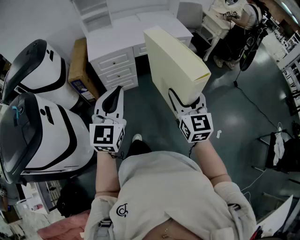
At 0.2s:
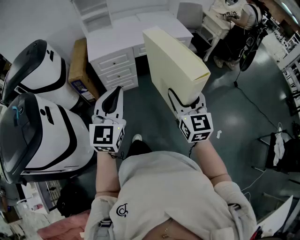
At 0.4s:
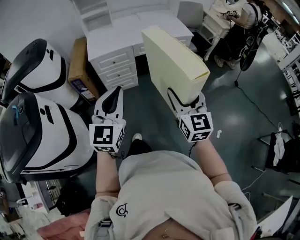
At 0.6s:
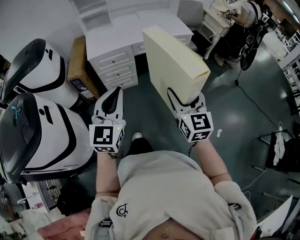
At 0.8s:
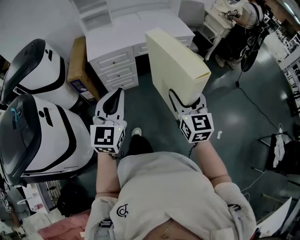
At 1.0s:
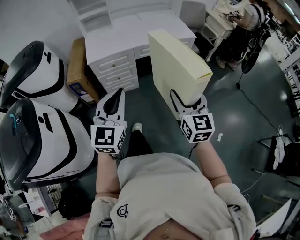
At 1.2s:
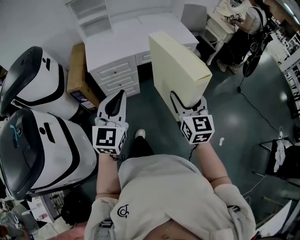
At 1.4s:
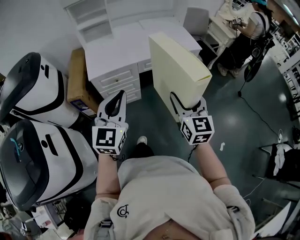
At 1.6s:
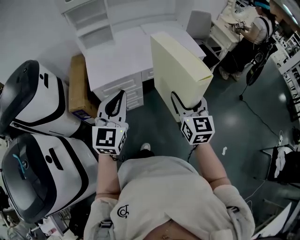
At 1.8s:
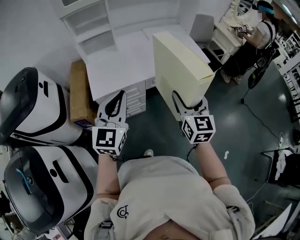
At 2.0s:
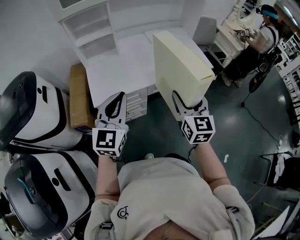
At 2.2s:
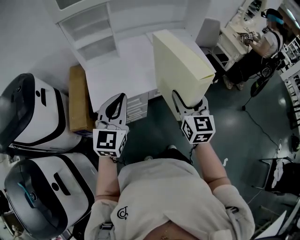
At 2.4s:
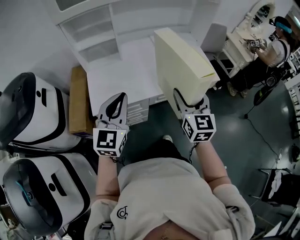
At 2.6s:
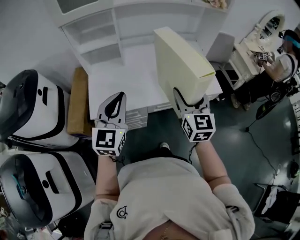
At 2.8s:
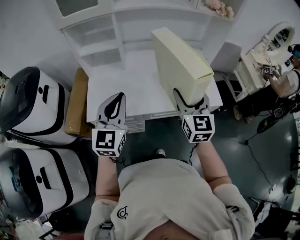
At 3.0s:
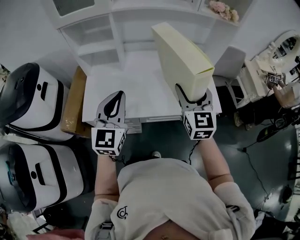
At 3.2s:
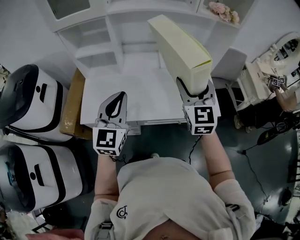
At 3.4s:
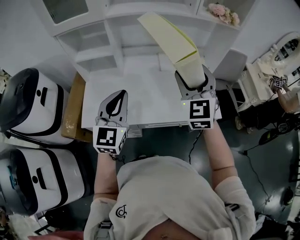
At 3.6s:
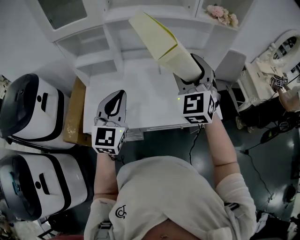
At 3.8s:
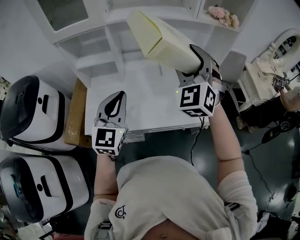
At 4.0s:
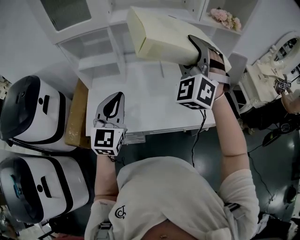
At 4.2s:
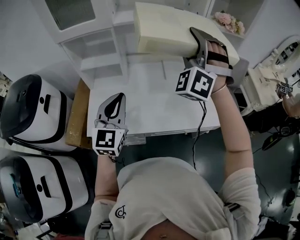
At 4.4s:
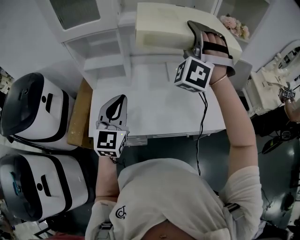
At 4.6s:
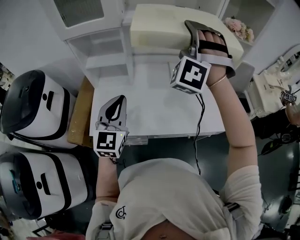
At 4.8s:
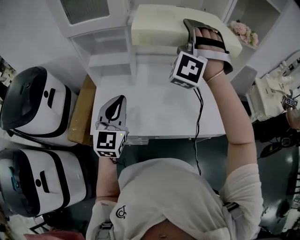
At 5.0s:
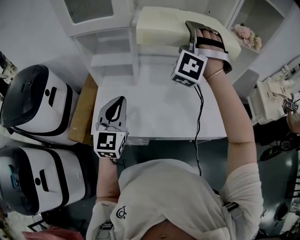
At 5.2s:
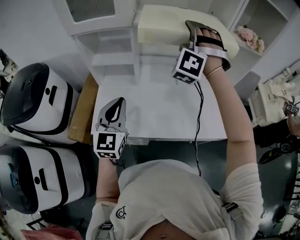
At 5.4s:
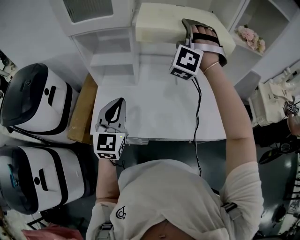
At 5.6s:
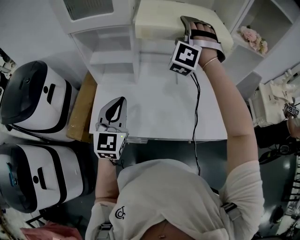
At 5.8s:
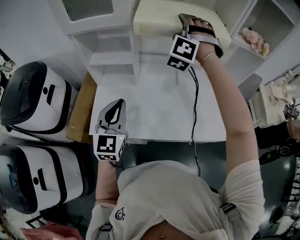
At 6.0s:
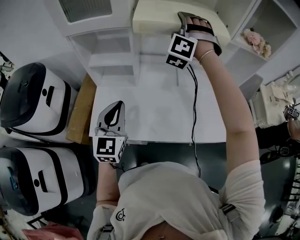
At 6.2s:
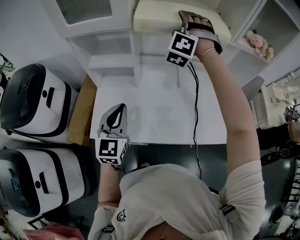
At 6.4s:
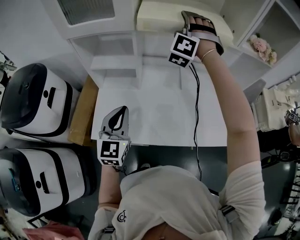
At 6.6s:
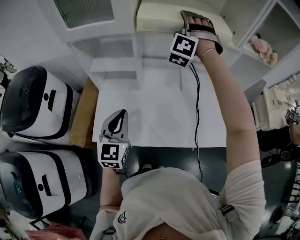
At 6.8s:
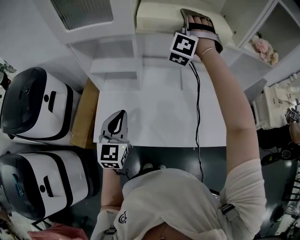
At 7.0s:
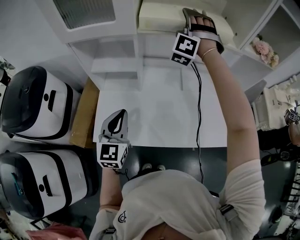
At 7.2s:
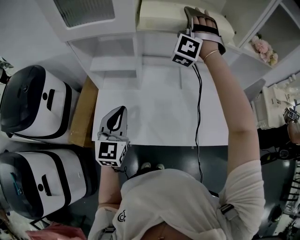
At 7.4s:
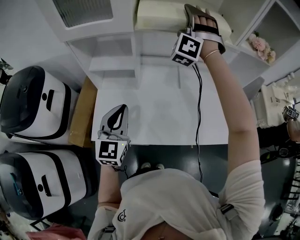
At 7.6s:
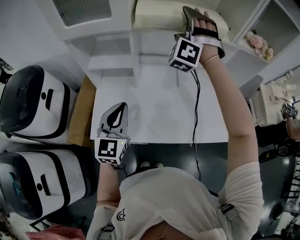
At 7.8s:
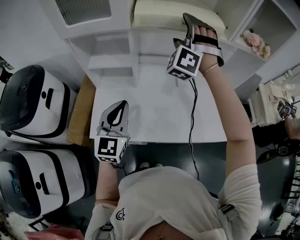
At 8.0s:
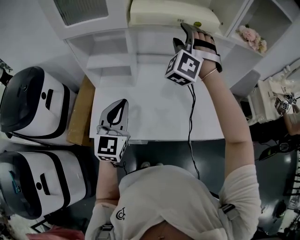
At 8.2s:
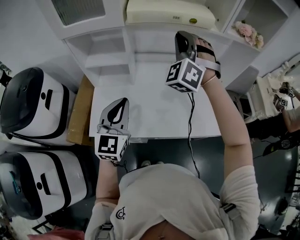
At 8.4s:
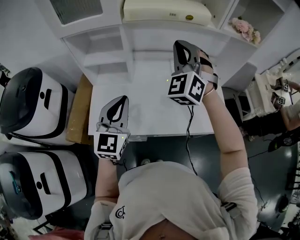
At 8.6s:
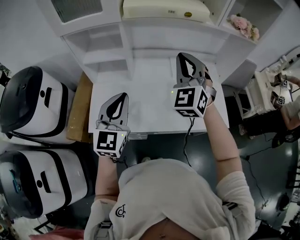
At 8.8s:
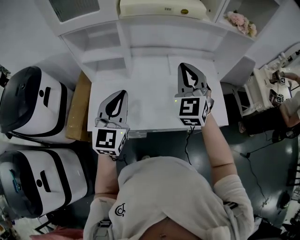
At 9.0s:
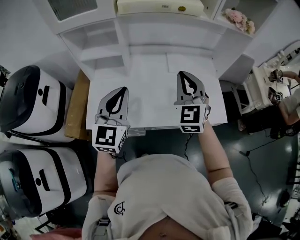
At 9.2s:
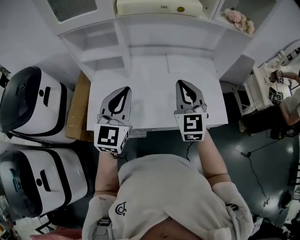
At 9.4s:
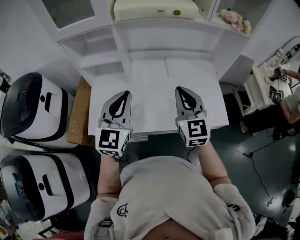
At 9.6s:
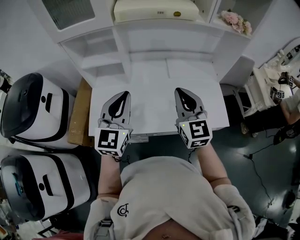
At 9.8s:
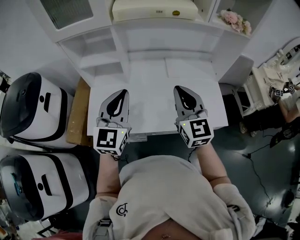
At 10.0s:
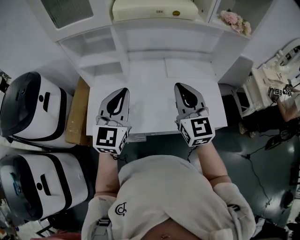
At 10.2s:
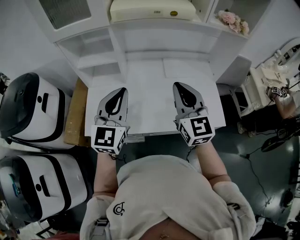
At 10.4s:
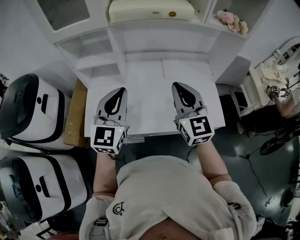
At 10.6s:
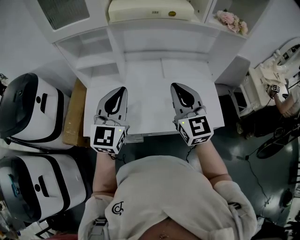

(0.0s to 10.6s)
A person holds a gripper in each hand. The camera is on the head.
0.0s - 1.6s: Both grippers travel together forward, approximately 25 cm.
1.6s - 3.0s: The grippers both shift forward by approximately 35 cm.
3.0s - 4.6s: The right gripper shifts about 25 cm forward, upward and to the left, and rolls counterclockwise, seen from behind, by approximately 80 degrees. The left gripper moves forward and to the left, approximately 10 cm.
4.6s - 6.0s: The left gripper changes place by approximately 5 cm. Meanwhile the right gripper moves forward and to the left, about 15 cm.
7.6s - 9.0s: The left gripper goes about 5 cm to the right; the right gripper is displaced backward, downward and to the right by roughly 30 cm, rolls clockwise, seen from behind, by approximately 60 degrees, and closes its fingers.
9.0s - 10.6s: The right gripper changes its angle by about 20 degrees.

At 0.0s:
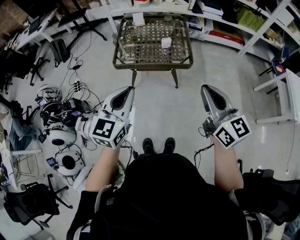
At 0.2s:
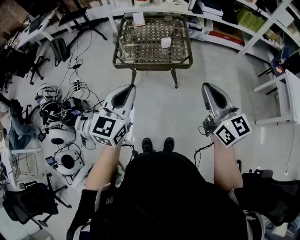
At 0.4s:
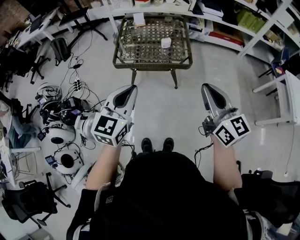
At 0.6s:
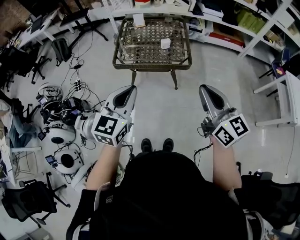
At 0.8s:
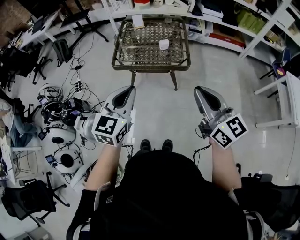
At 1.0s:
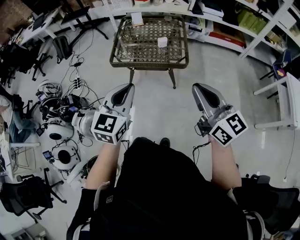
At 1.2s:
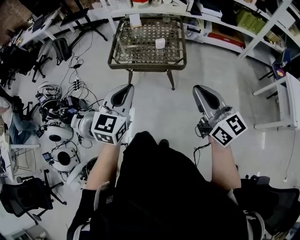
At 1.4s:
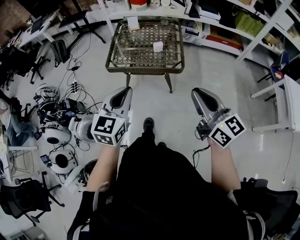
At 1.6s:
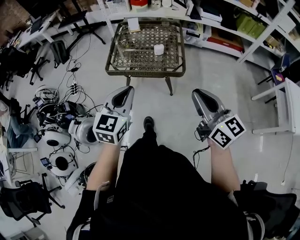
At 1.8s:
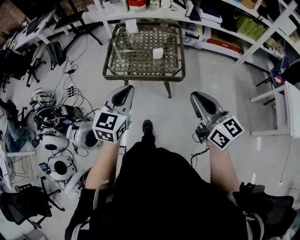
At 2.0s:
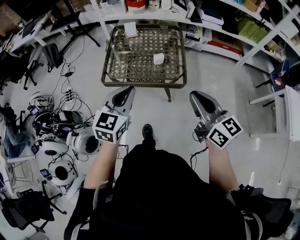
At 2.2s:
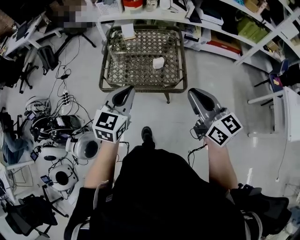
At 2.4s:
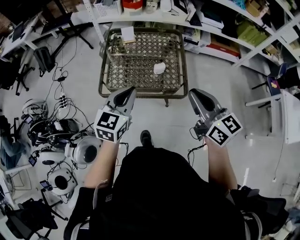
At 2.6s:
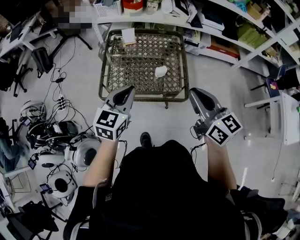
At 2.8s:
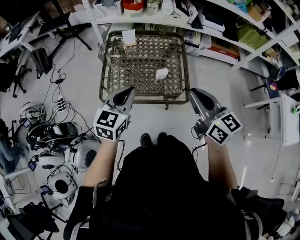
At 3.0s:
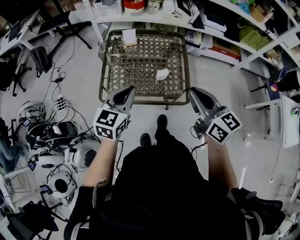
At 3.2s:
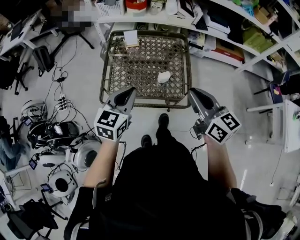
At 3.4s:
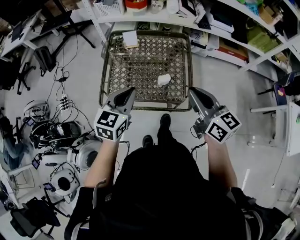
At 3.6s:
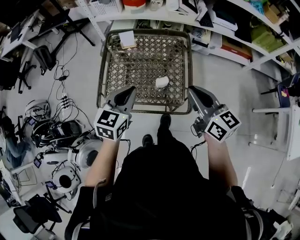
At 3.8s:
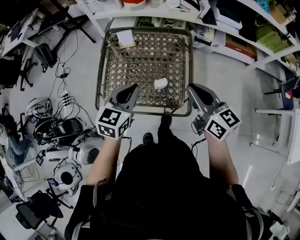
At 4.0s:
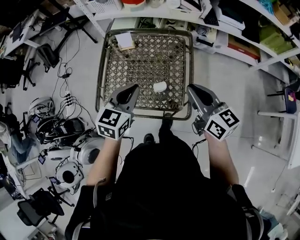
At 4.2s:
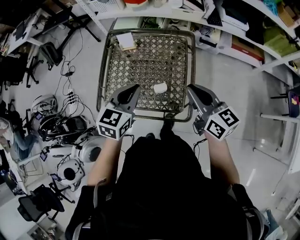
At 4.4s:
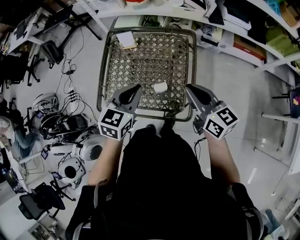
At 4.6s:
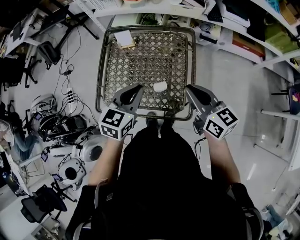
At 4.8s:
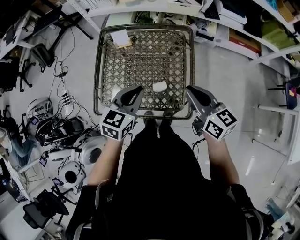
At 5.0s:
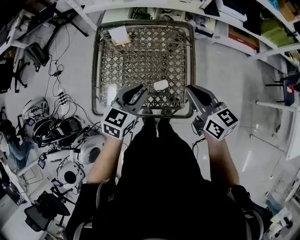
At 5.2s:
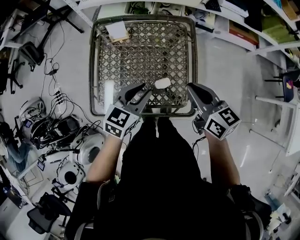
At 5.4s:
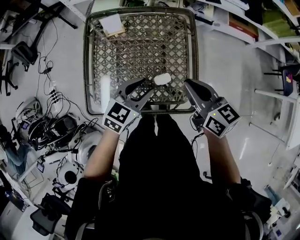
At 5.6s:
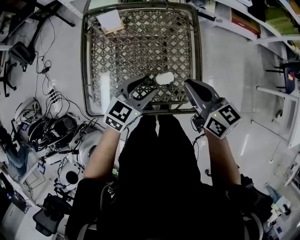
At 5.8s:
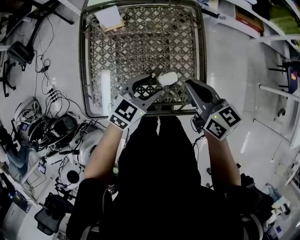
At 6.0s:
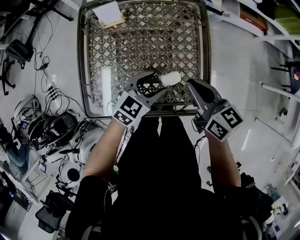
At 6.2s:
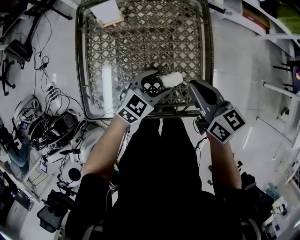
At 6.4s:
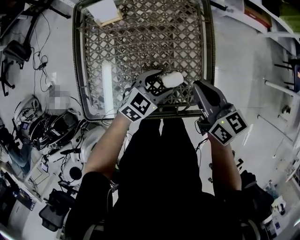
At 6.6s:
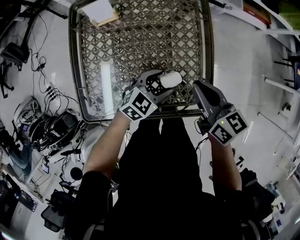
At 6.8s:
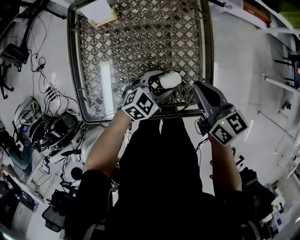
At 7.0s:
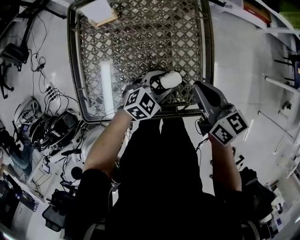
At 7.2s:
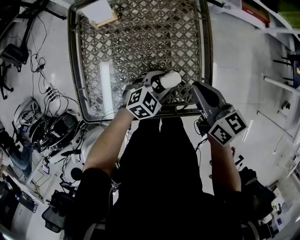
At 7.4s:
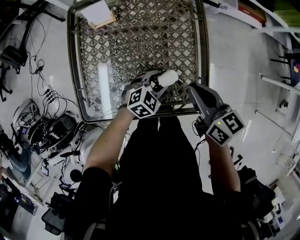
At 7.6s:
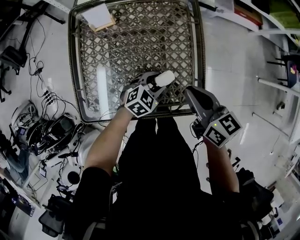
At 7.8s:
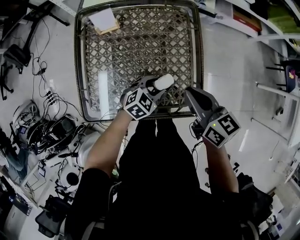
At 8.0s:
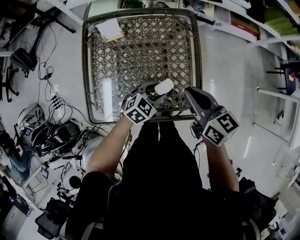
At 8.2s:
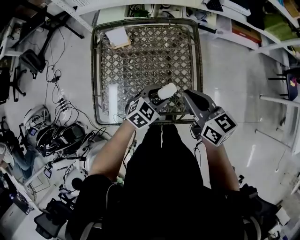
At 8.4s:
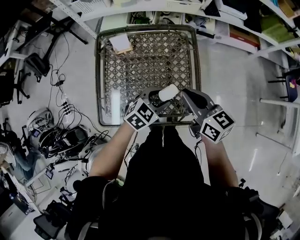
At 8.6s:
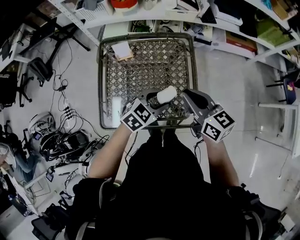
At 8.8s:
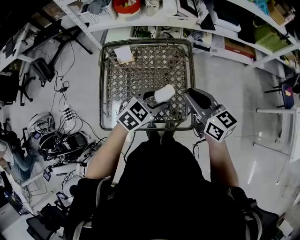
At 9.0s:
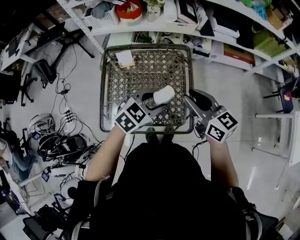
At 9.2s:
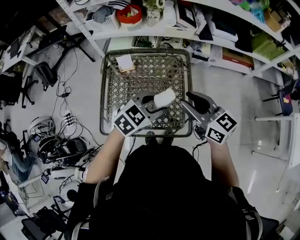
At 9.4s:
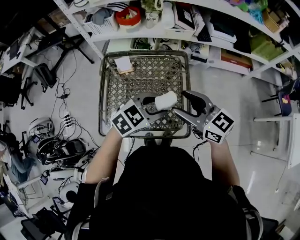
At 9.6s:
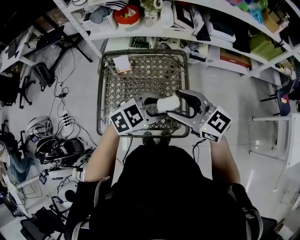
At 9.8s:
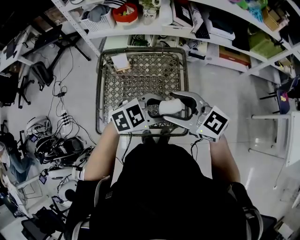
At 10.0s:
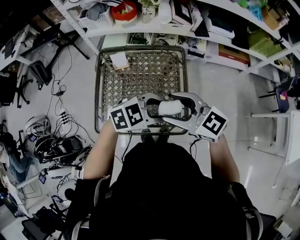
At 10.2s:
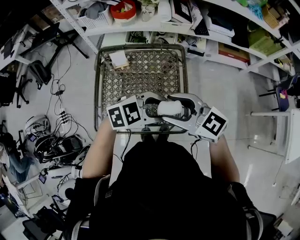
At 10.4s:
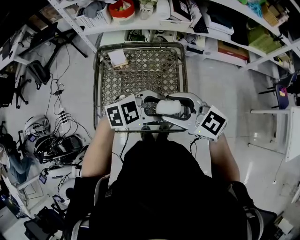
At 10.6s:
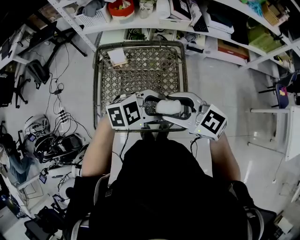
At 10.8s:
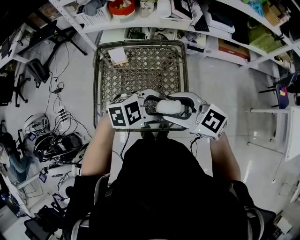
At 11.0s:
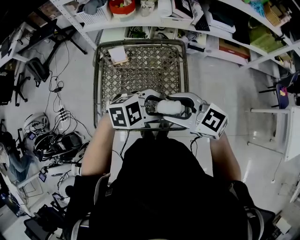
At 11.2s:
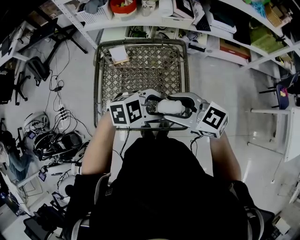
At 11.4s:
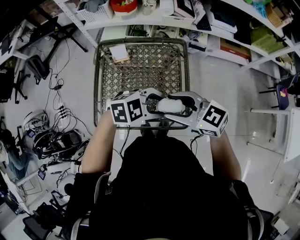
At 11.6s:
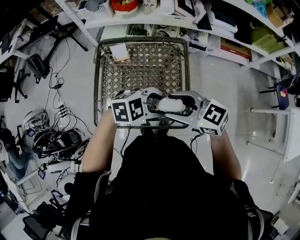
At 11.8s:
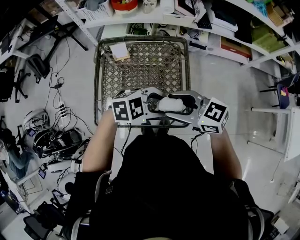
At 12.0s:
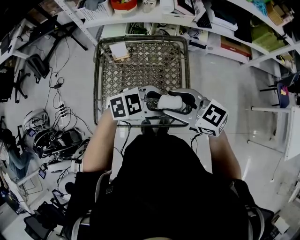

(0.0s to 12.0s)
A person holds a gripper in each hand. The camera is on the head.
0.0s - 1.6s: The left gripper goes about 5 cm to the right. Meanwhile the right gripper ends up some 5 cm from where it was.
1.6s - 3.0s: The grippers both shift forward by approximately 25 cm.
3.0s - 4.4s: The right gripper is displaced forward, downward and to the right by about 20 cm. Meanwhile the left gripper travels forward and to the right by some 15 cm.
4.4s - 6.0s: The right gripper travels downward and to the left by about 15 cm. The left gripper moves downward, roughly 20 cm, swivels approximately 30 degrees, and opens.
6.0s - 7.6s: The left gripper heads downward, covering roughly 10 cm.
7.6s - 9.0s: The left gripper shifts approximately 25 cm upward. The right gripper is displaced upward by some 15 cm, and changes its angle by approximately 20 degrees.
9.0s - 10.4s: The right gripper ends up roughly 10 cm from where it was, turns by some 30 degrees, and opens up; the left gripper shifts by approximately 5 cm, and changes its angle by approximately 30 degrees.
10.4s - 12.0s: The grippers make only small movements.

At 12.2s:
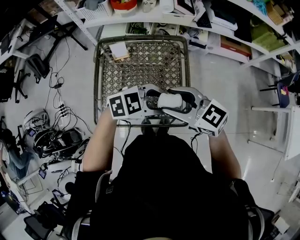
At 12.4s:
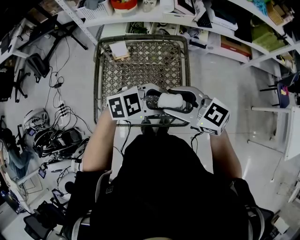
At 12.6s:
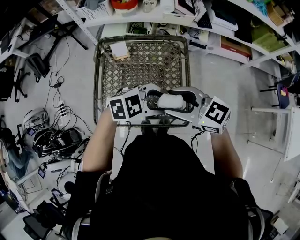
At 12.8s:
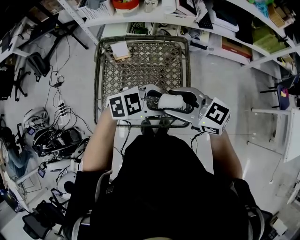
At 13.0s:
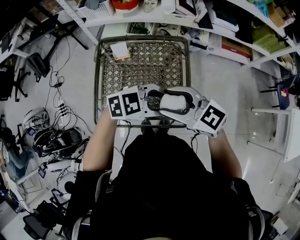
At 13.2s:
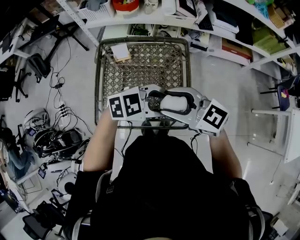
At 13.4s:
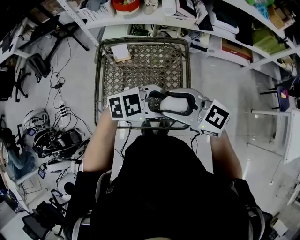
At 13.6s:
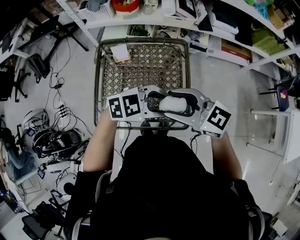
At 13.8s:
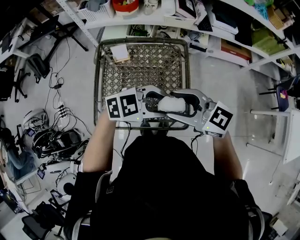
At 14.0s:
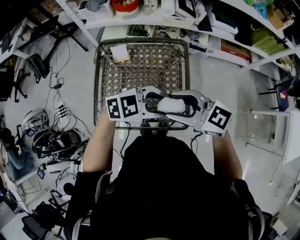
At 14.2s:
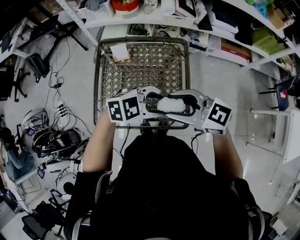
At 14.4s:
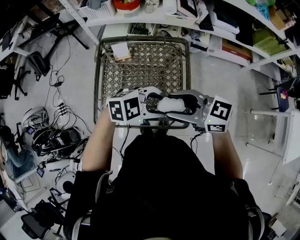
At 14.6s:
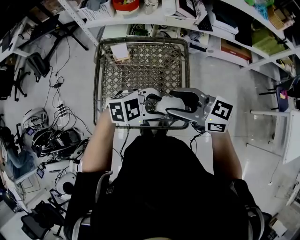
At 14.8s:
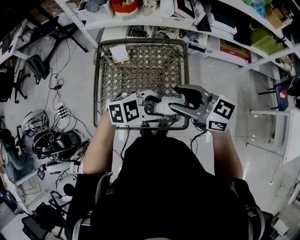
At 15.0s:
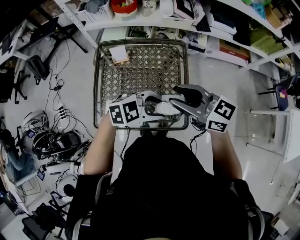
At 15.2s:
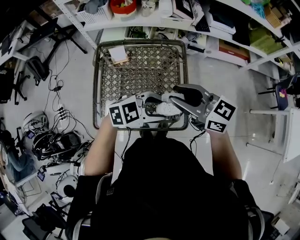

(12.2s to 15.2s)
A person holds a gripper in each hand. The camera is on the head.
12.2s - 13.8s: The grippers move only a little.
13.8s - 15.2s: The right gripper closes.
